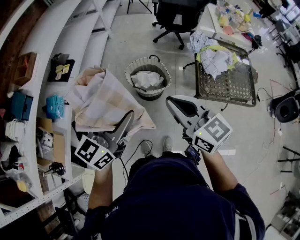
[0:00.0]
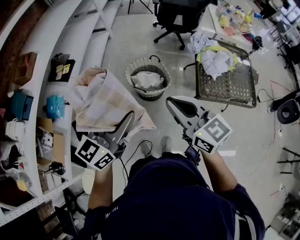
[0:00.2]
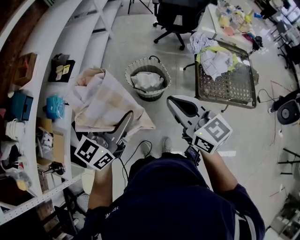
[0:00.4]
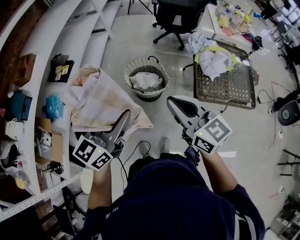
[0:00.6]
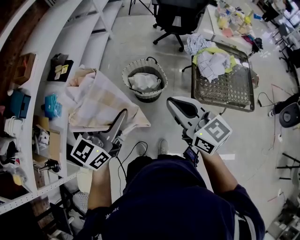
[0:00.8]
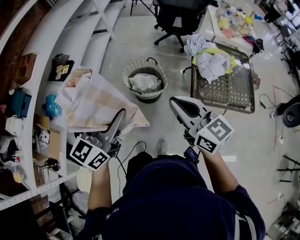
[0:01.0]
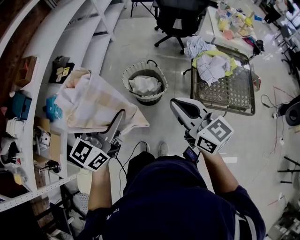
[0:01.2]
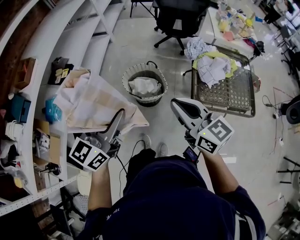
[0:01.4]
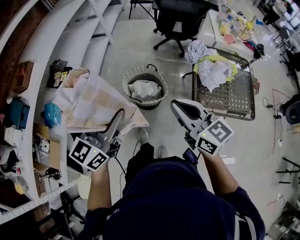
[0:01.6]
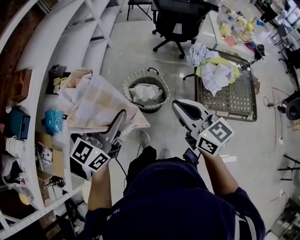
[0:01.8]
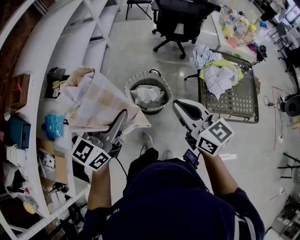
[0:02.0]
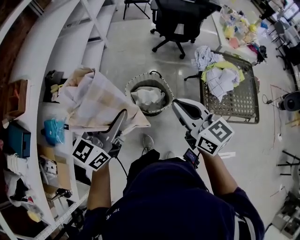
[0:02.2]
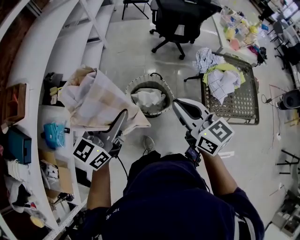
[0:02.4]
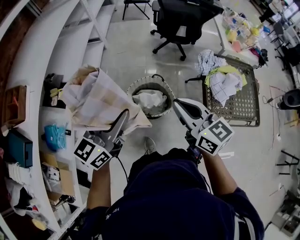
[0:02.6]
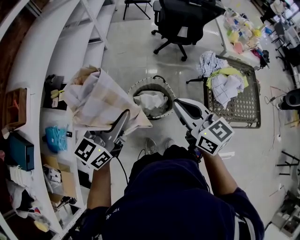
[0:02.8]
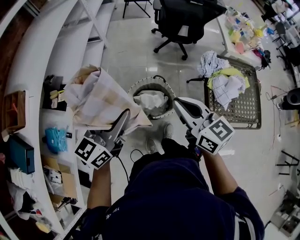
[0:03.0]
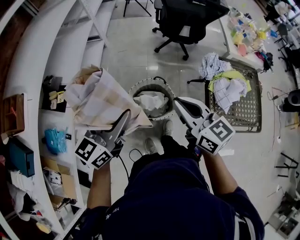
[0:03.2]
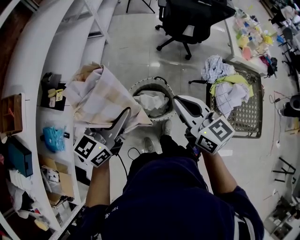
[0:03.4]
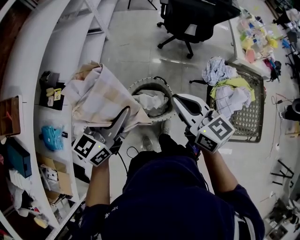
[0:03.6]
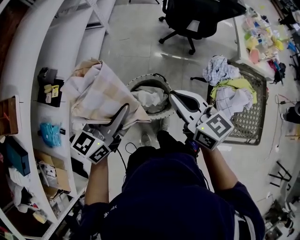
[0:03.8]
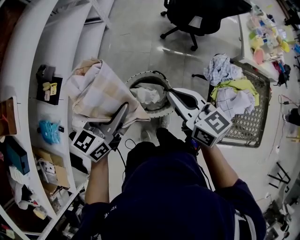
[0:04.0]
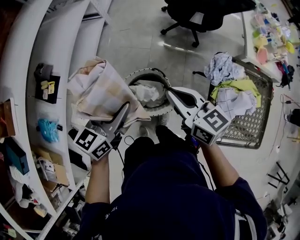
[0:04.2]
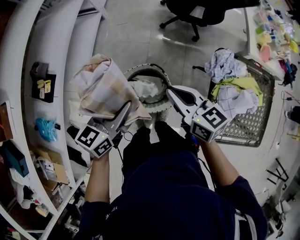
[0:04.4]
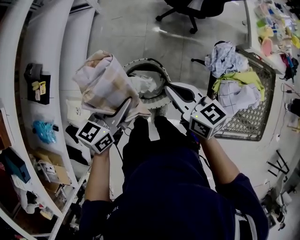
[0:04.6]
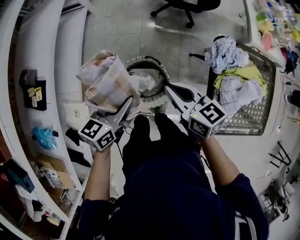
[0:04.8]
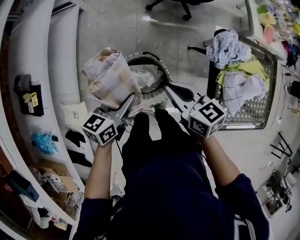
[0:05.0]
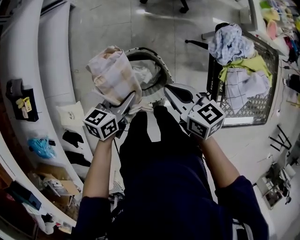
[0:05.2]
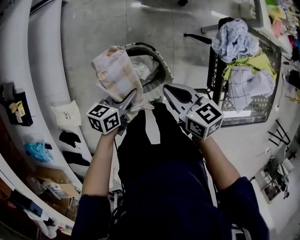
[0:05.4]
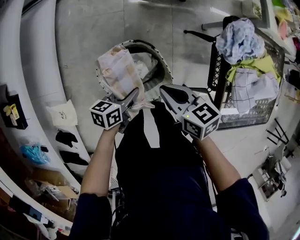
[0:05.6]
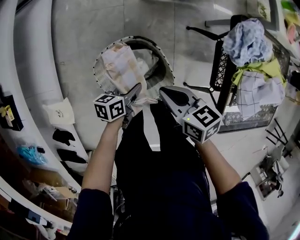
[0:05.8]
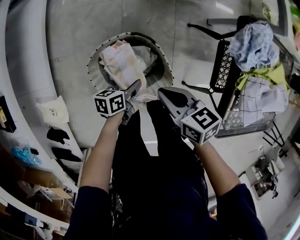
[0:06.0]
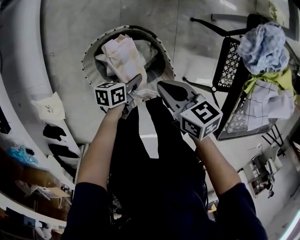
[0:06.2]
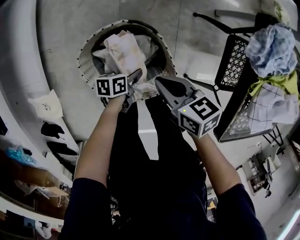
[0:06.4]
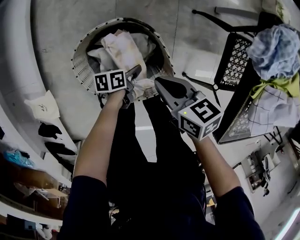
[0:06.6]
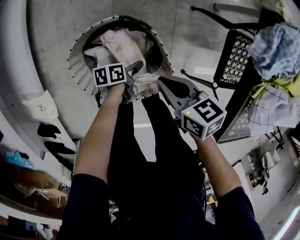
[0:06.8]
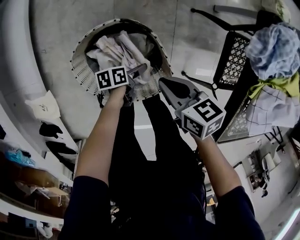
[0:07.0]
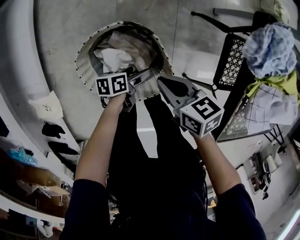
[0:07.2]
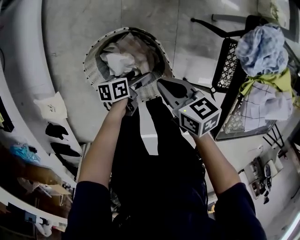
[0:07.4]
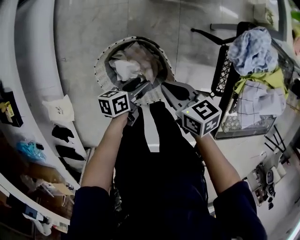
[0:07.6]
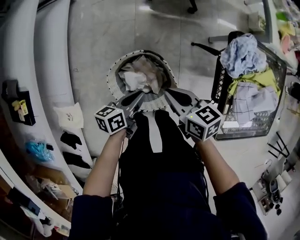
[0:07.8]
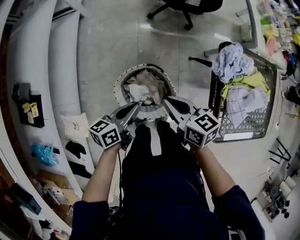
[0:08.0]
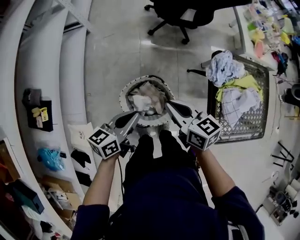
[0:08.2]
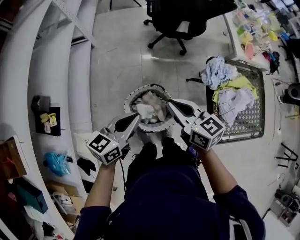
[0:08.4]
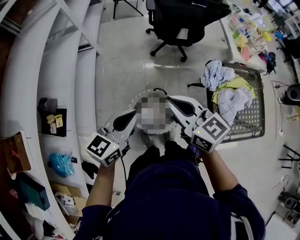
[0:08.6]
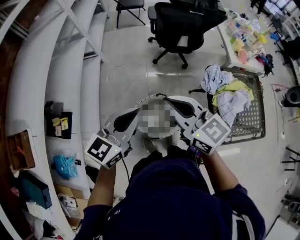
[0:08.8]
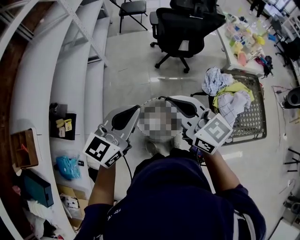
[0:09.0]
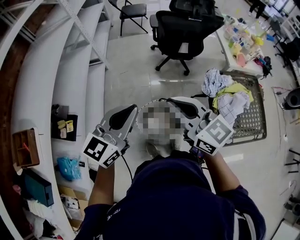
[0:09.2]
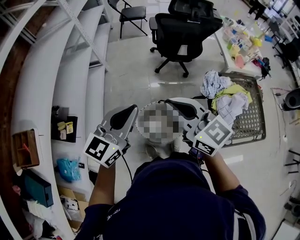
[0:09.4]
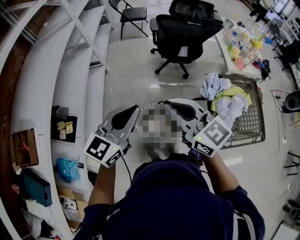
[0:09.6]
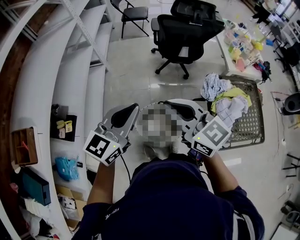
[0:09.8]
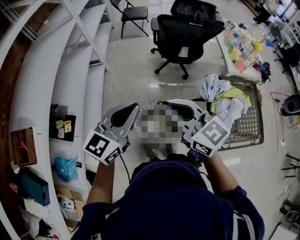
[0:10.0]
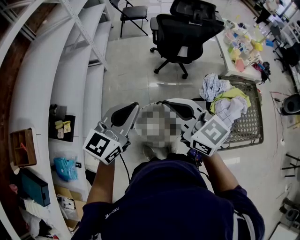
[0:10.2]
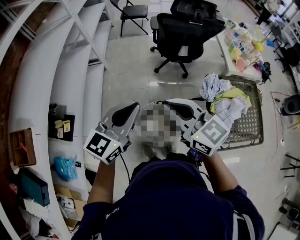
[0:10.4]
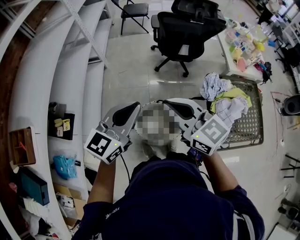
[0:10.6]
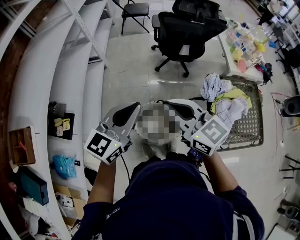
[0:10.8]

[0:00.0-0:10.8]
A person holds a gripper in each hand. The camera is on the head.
0:00.0 to 0:01.6: The left gripper is displaced forward by approximately 5 cm. The right gripper heads to the right and forward, covering some 10 cm.
0:01.6 to 0:03.0: The two grippers go approximately 20 cm forward and to the left.
0:03.0 to 0:04.6: The right gripper heads forward, downward and to the right, covering approximately 25 cm, while the left gripper goes some 25 cm downward, forward and to the right, and swivels about 20 degrees.
0:04.6 to 0:06.2: Both grippers move downward, roughly 40 cm. The right gripper rotates approximately 30 degrees. Meanwhile the left gripper rotates about 50 degrees.
0:06.2 to 0:07.8: The right gripper moves upward, approximately 10 cm. Meanwhile the left gripper shifts about 20 cm upward, and opens and closes again.
0:07.8 to 0:09.2: The two grippers go about 40 cm upward. The left gripper rolls clockwise, seen from behind, by approximately 60 degrees; the right gripper angles its fingers upward, by roughly 30 degrees.
0:09.2 to 0:10.8: There are only small adjustments of the grippers.

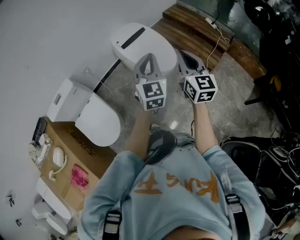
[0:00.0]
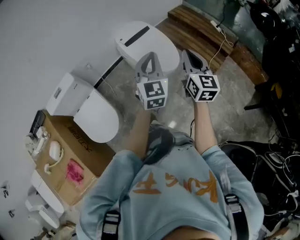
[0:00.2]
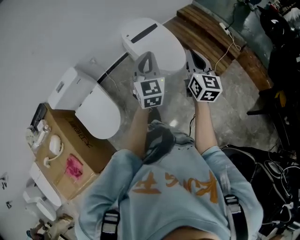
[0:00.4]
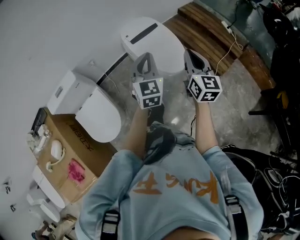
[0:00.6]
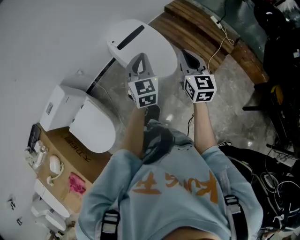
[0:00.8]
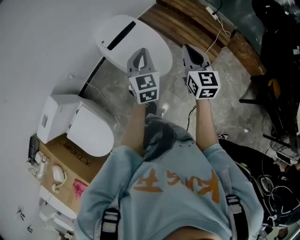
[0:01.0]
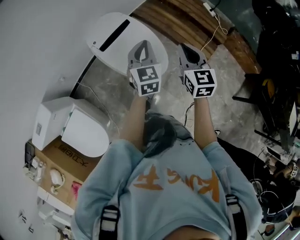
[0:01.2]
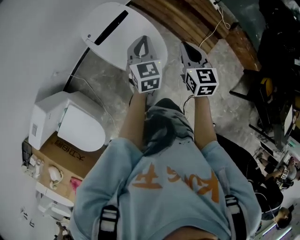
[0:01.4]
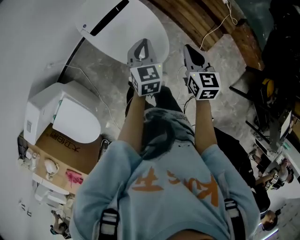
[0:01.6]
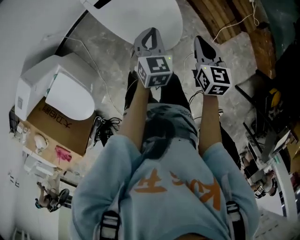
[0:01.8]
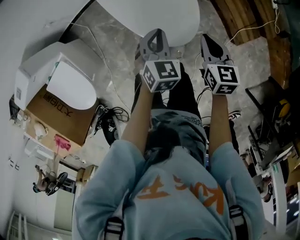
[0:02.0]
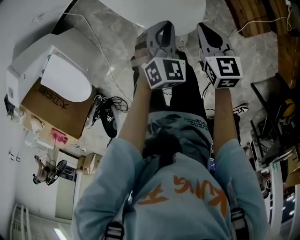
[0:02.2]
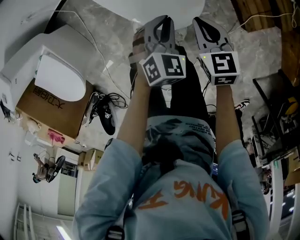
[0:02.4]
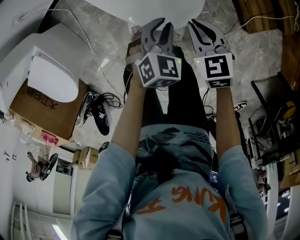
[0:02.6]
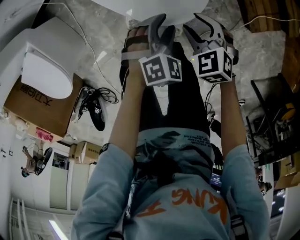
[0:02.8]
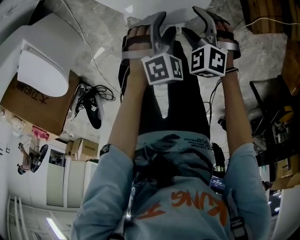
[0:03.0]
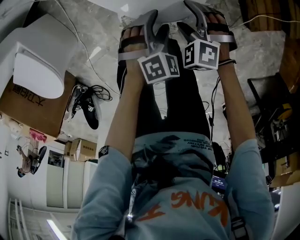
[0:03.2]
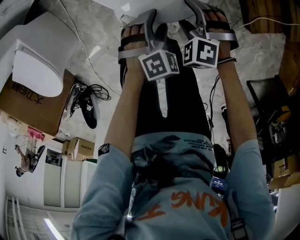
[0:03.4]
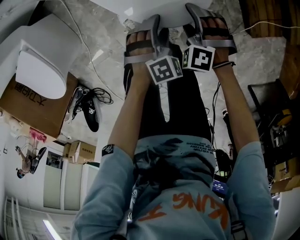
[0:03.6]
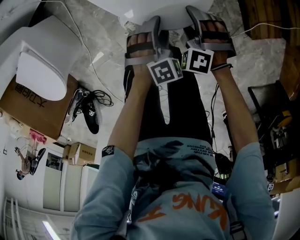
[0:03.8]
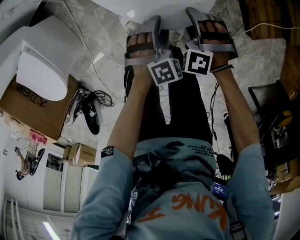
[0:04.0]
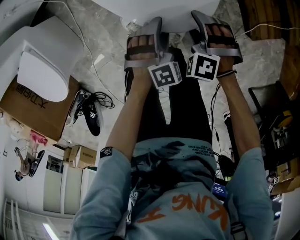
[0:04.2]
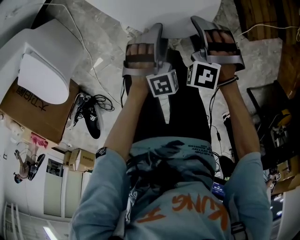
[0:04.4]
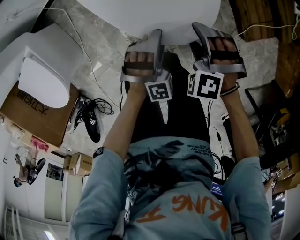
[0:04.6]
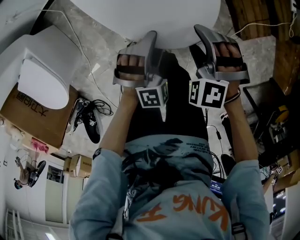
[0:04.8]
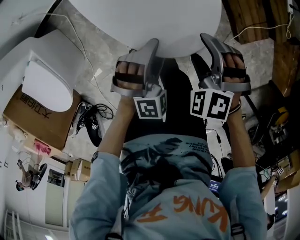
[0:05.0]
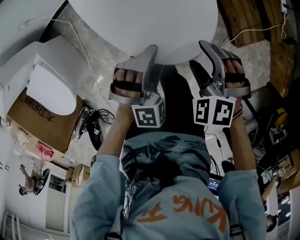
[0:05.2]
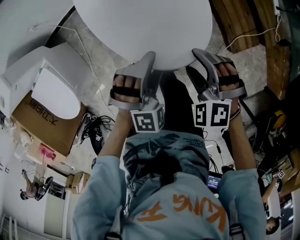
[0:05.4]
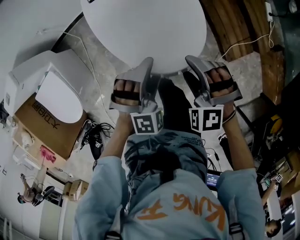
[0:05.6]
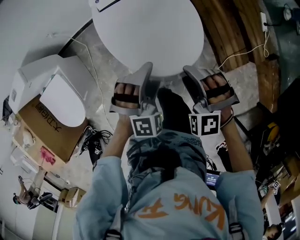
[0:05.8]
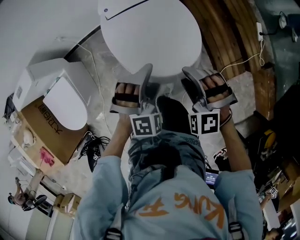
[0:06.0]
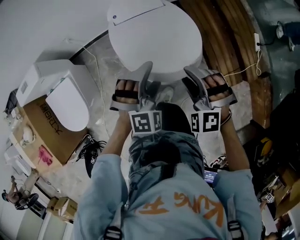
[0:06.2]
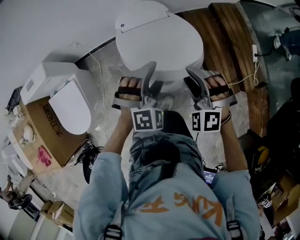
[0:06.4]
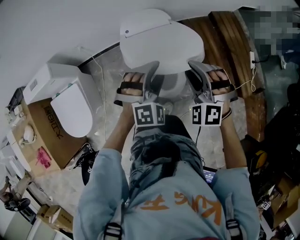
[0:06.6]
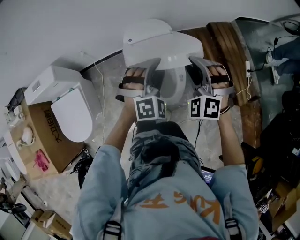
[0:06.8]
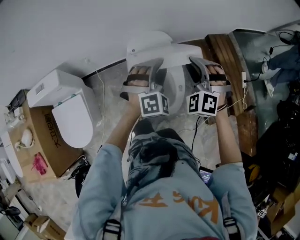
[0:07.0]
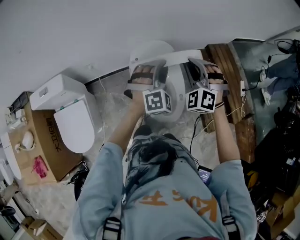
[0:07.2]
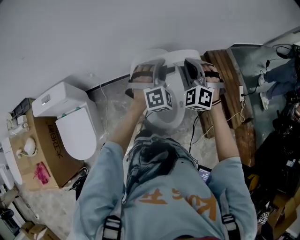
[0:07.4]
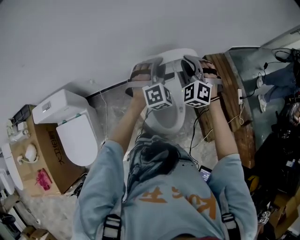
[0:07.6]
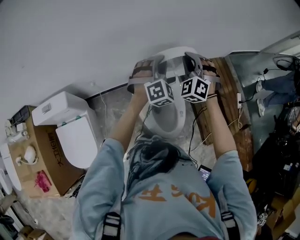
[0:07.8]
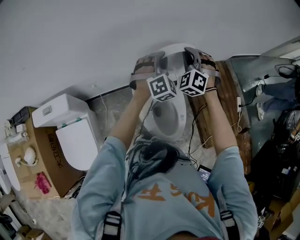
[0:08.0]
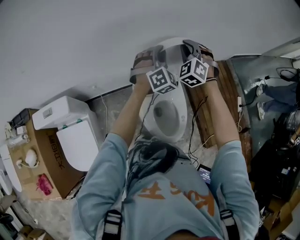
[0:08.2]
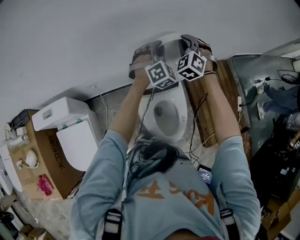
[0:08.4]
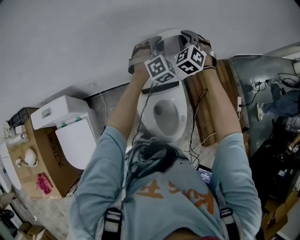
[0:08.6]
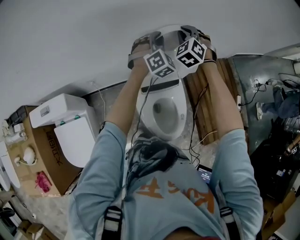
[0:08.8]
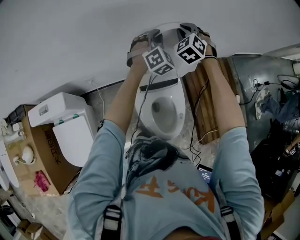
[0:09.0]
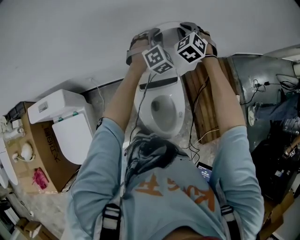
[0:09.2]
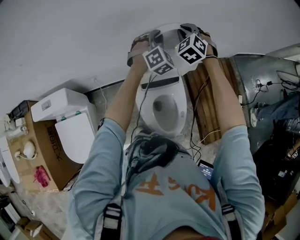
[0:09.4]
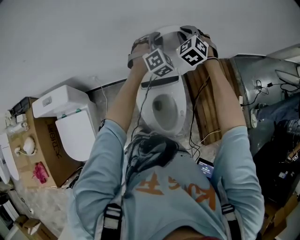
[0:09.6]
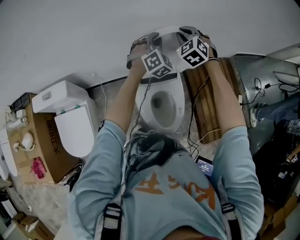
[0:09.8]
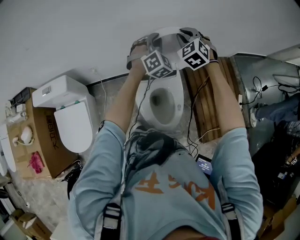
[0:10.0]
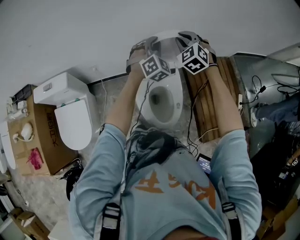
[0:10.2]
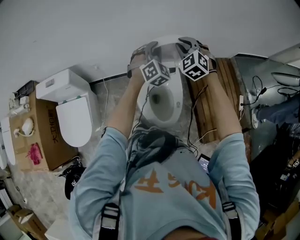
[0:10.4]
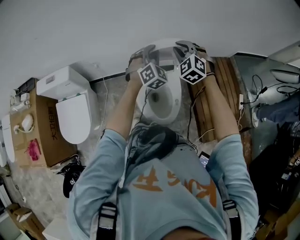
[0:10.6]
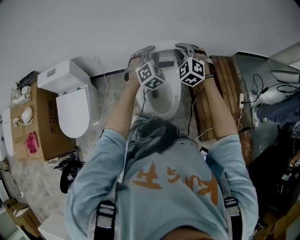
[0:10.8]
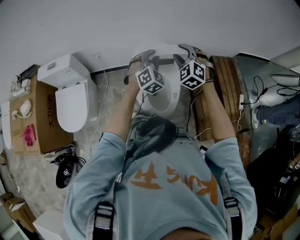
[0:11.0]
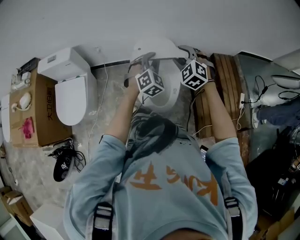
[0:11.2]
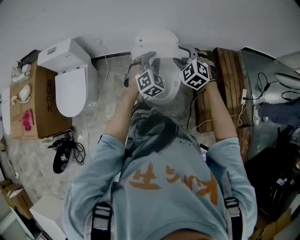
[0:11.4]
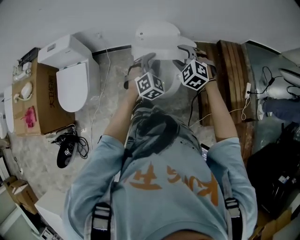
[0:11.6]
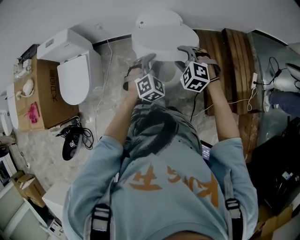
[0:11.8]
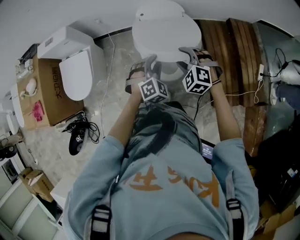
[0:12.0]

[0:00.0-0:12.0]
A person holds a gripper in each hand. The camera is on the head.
0:00.0 to 0:01.6: Both grippers move forward and downward, some 40 cm. The right gripper angles its fingers downward, by about 30 degrees; the left gripper rotates approximately 30 degrees.
0:01.6 to 0:03.0: The left gripper travels downward and backward by some 35 cm, changes its angle by approximately 50 degrees, and opens its fingers. Meanwhile the right gripper shifts some 40 cm downward, rolls counterclockwise, seen from behind, by roughly 60 degrees, and opens up.
0:03.0 to 0:04.4: The right gripper rotates about 30 degrees; the left gripper swivels roughly 20 degrees.
0:04.4 to 0:06.0: Both grippers travel together upward, some 30 cm.
0:06.0 to 0:07.6: The grippers both shift forward and upward by approximately 35 cm. The right gripper swivels roughly 30 degrees, and closes up. The left gripper rotates roughly 30 degrees, and closes.
0:07.6 to 0:09.0: The two grippers go about 20 cm forward.
0:09.0 to 0:10.4: Both grippers move backward, some 20 cm.
0:10.4 to 0:12.0: Both grippers travel together backward and downward, some 35 cm. The left gripper turns by approximately 20 degrees; the right gripper swivels approximately 30 degrees, and opens up.

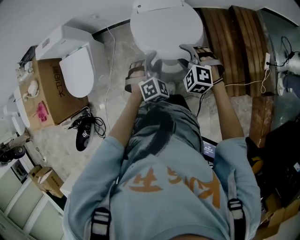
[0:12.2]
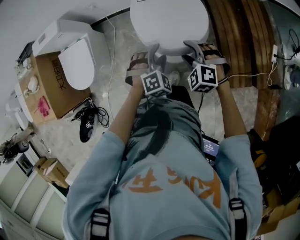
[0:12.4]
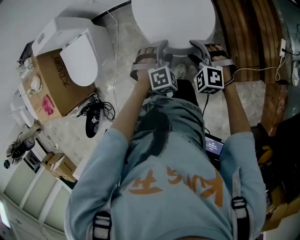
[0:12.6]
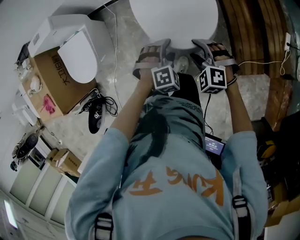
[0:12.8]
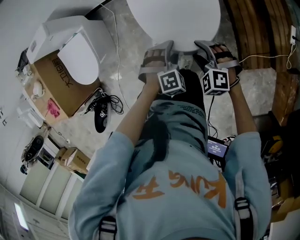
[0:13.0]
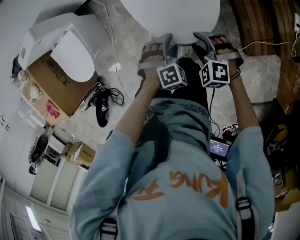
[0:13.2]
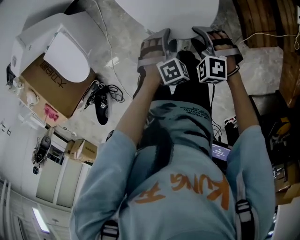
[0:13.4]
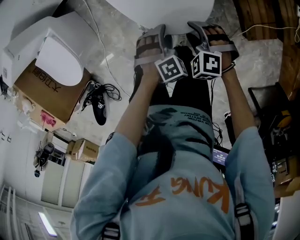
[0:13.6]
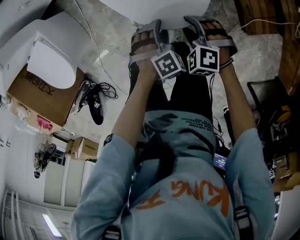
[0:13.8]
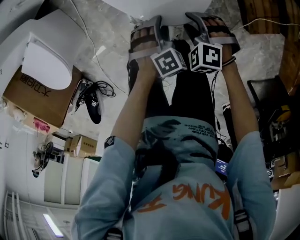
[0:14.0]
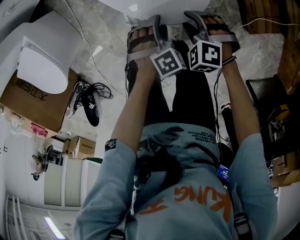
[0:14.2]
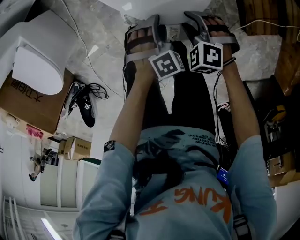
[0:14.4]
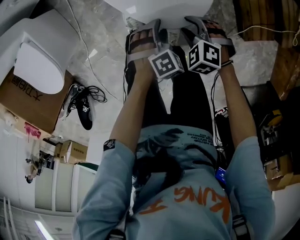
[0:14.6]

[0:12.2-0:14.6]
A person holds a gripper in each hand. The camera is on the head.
0:12.2 to 0:13.4: Both grippers move downward, approximately 20 cm. The left gripper rotates some 30 degrees.
0:13.4 to 0:14.6: The grippers both shift downward by some 15 cm.
